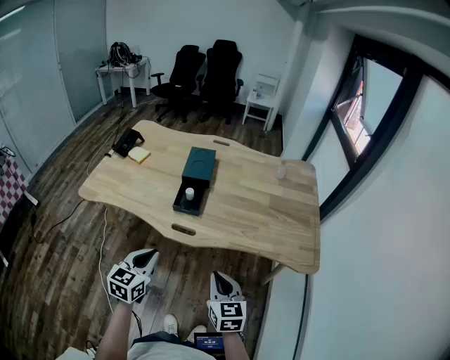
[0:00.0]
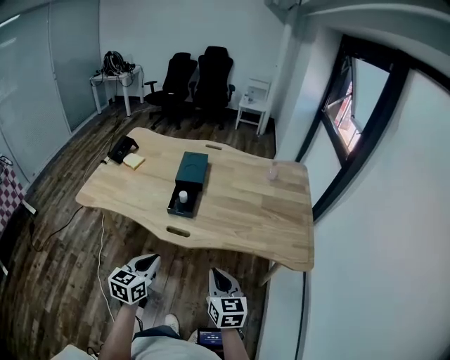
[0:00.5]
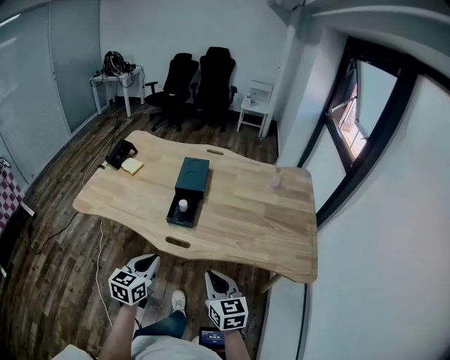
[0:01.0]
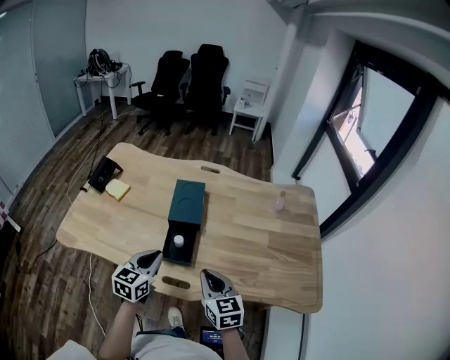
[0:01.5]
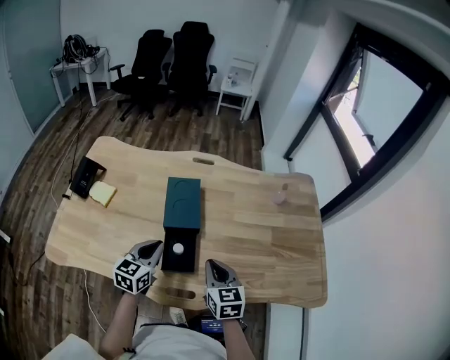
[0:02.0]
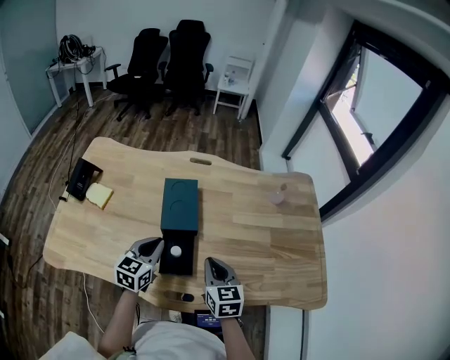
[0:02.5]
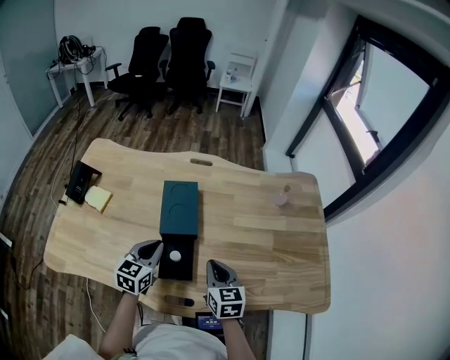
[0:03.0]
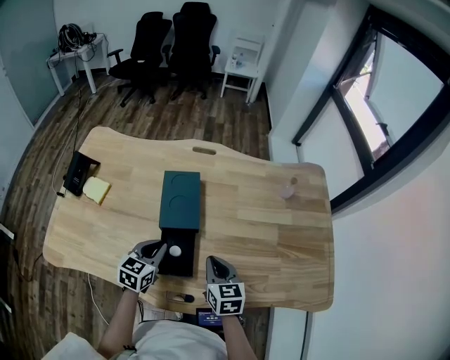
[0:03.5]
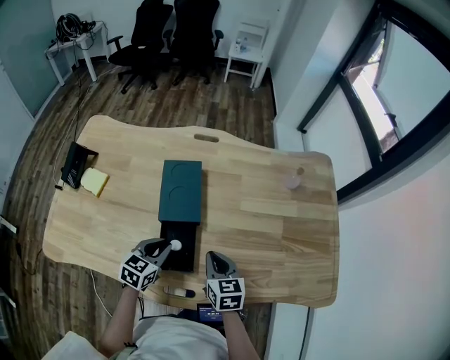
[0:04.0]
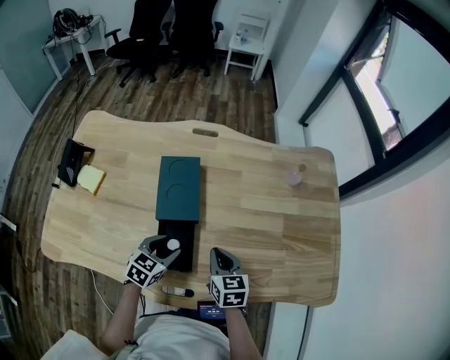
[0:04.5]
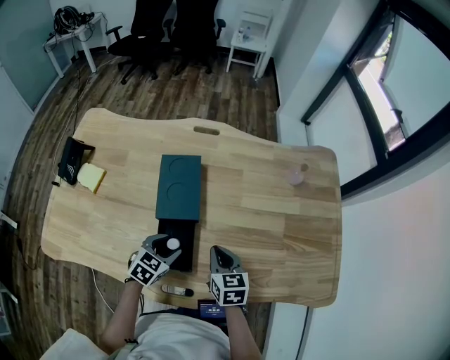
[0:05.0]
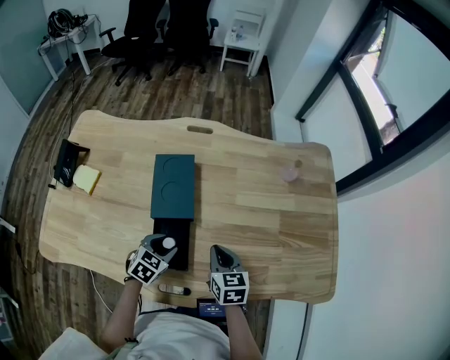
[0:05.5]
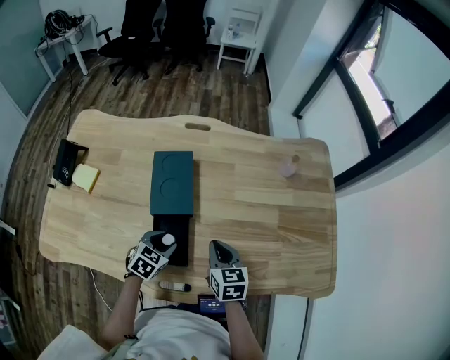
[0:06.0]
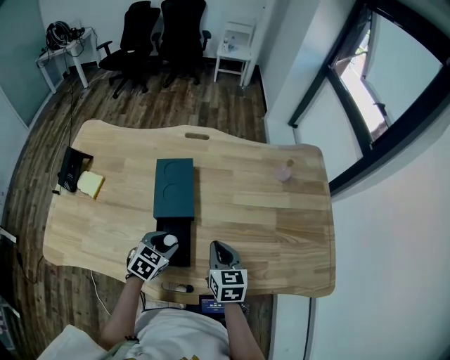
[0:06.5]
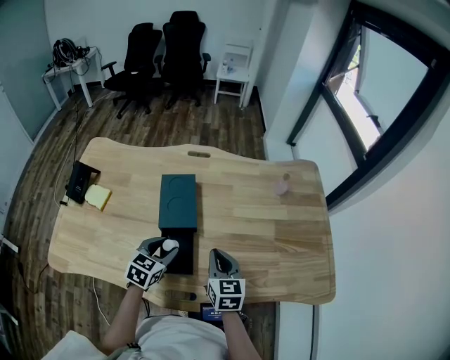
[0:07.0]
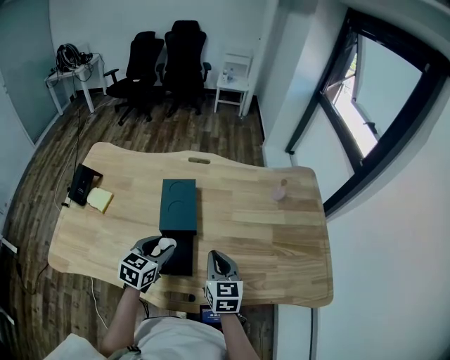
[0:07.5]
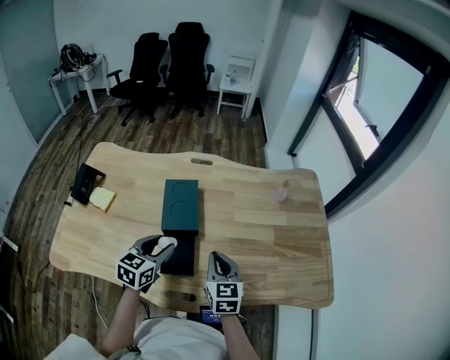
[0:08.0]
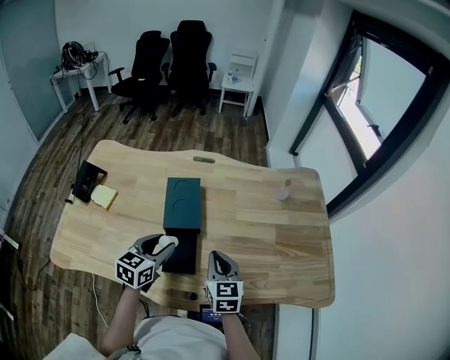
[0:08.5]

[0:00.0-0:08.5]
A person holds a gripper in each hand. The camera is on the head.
0:00.0 to 0:02.0: Both grippers travel together forward, some 35 cm.
0:02.0 to 0:04.0: Both grippers travel together downward, approximately 10 cm.
0:04.0 to 0:06.5: The left gripper opens.
0:06.5 to 0:08.5: The right gripper travels upward by roughly 5 cm. Meanwhile the left gripper goes roughly 10 cm upward, and swivels roughly 30 degrees.

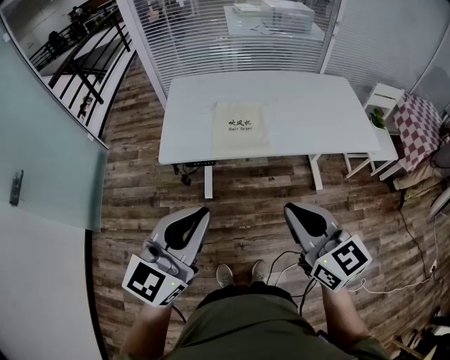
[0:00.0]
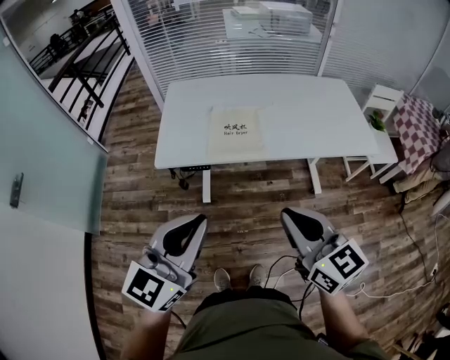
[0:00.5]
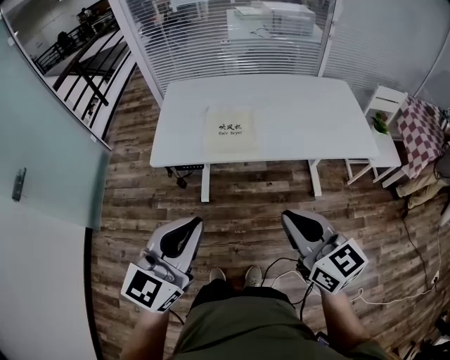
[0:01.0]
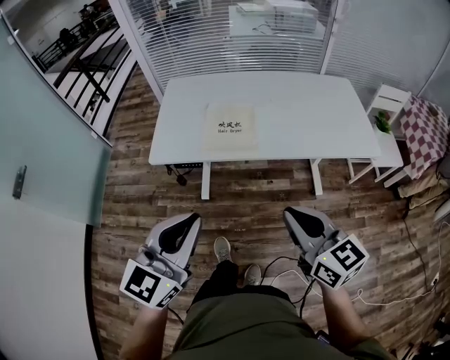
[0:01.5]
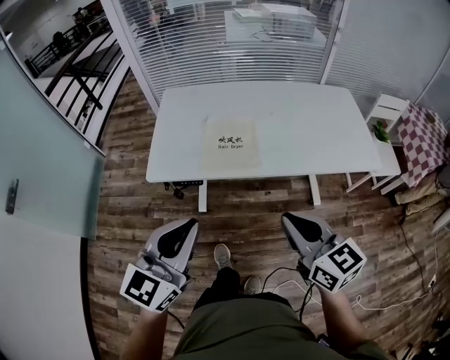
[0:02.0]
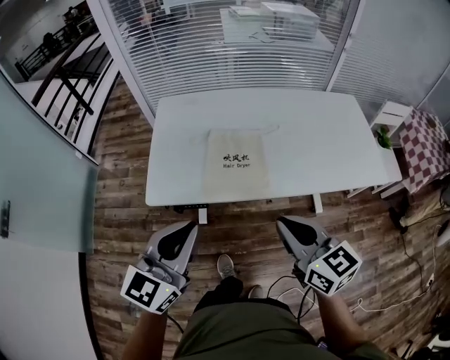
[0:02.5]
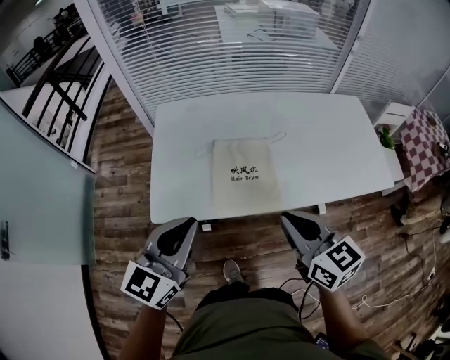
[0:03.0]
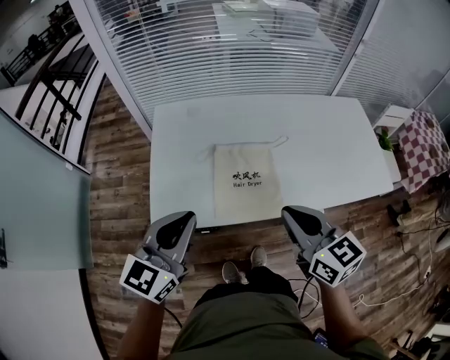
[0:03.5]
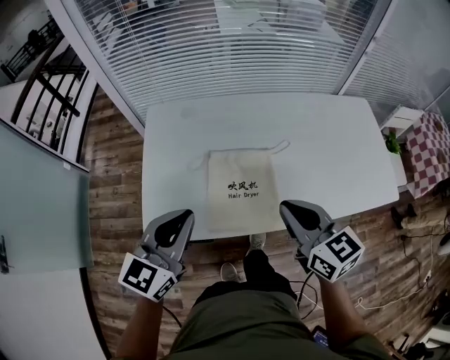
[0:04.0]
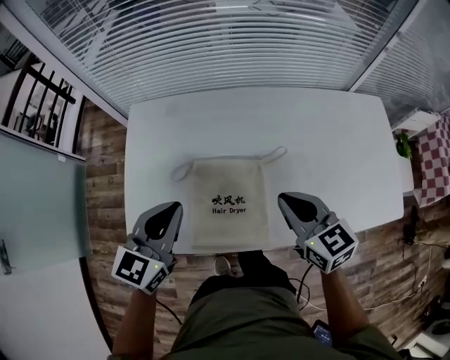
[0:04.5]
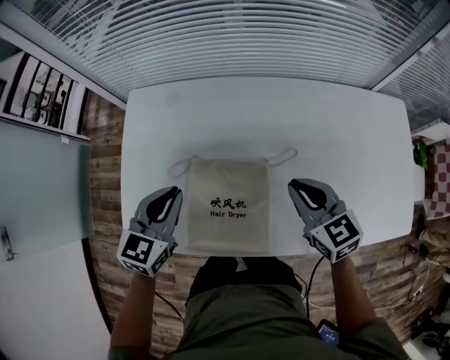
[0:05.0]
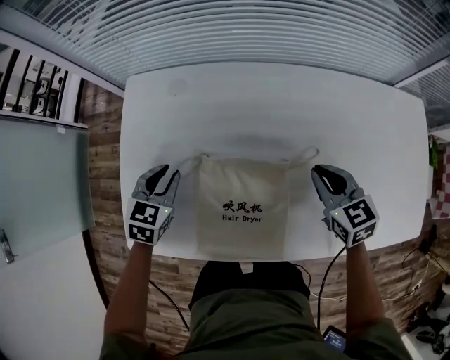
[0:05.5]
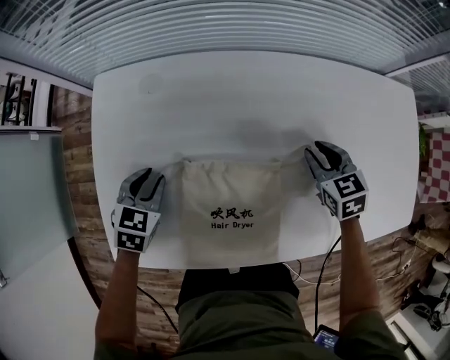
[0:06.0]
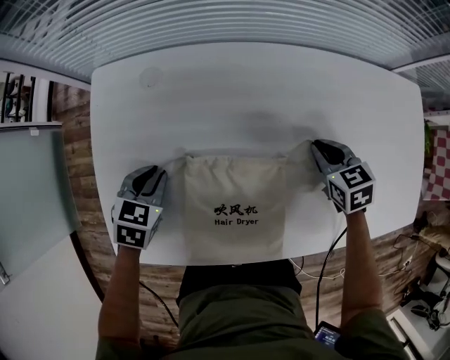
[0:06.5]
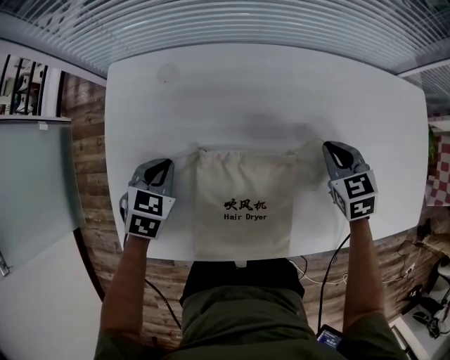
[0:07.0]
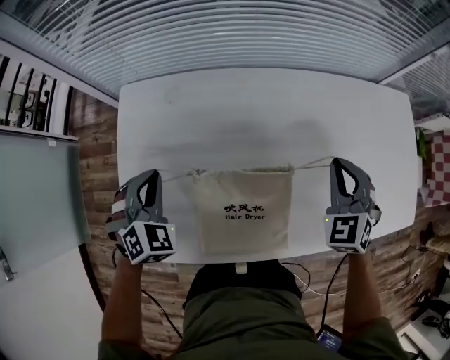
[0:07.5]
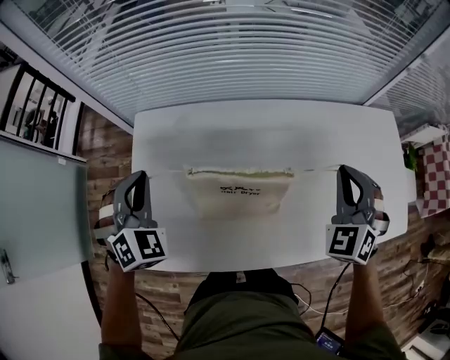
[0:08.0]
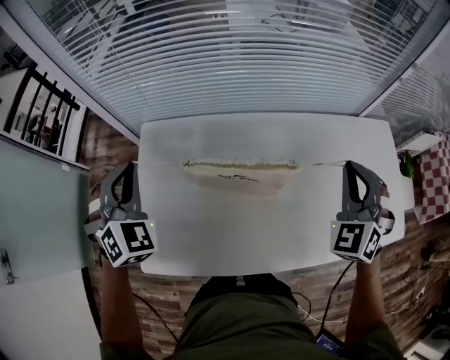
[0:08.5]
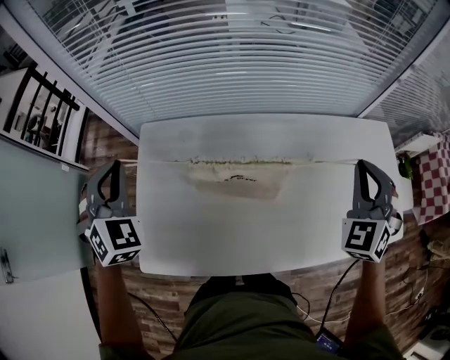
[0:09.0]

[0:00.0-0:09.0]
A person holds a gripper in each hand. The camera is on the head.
0:00.0 to 0:02.0: The left gripper goes about 5 cm forward. Meanwhile the right gripper shifts roughly 10 cm forward and to the right.
0:02.0 to 0:04.5: Both grippers travel together forward, some 40 cm.
0:04.5 to 0:07.0: The right gripper goes roughly 25 cm downward, forward and to the right, turns by about 30 degrees, and opens, then closes again; the left gripper moves downward and forward, roughly 25 cm, and points its fingers about 40 degrees further downward.
0:07.0 to 0:09.0: The grippers both shift upward by some 30 cm. The left gripper angles its fingers upward, by approximately 30 degrees; the right gripper turns by approximately 50 degrees.

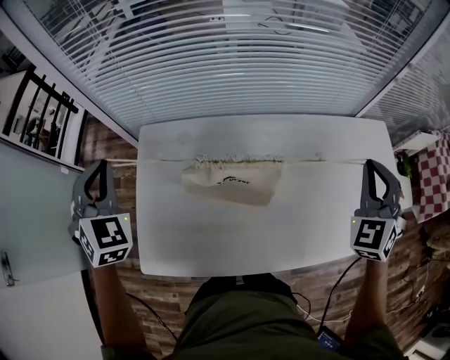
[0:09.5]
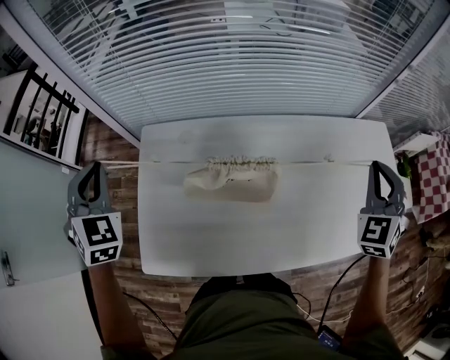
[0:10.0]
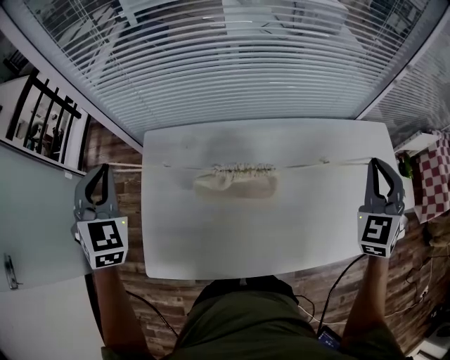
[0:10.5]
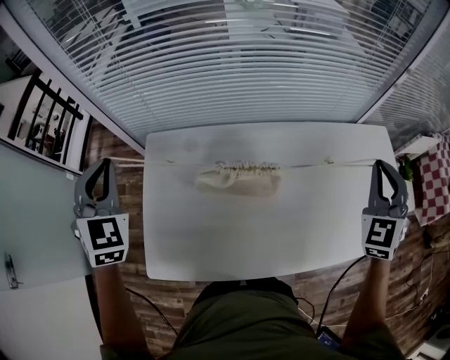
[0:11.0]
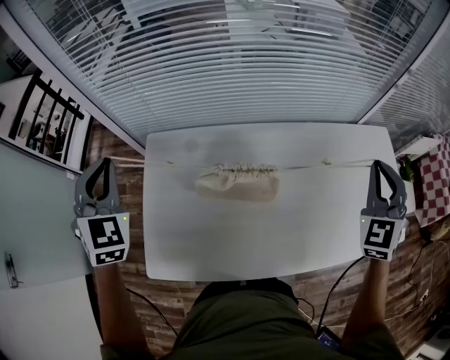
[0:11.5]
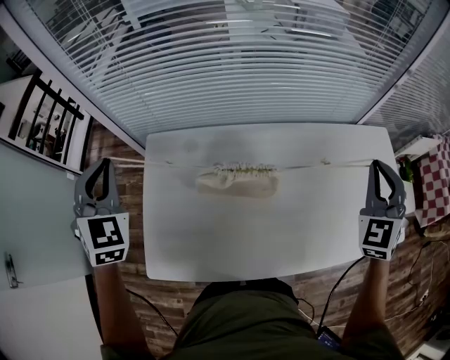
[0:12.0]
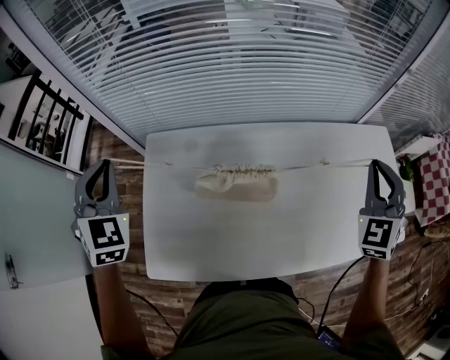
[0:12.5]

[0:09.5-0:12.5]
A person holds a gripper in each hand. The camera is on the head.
0:09.5 to 0:11.0: The grippers make only small movements.
0:11.0 to 0:12.5: Both grippers stay about where they are.

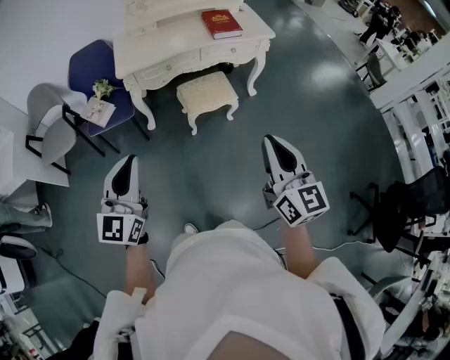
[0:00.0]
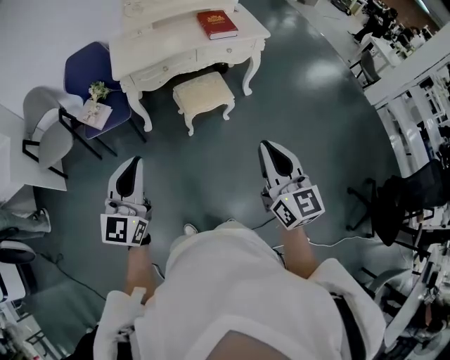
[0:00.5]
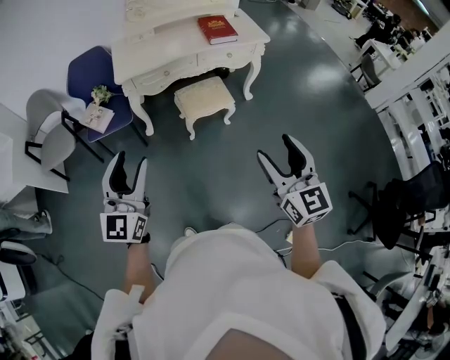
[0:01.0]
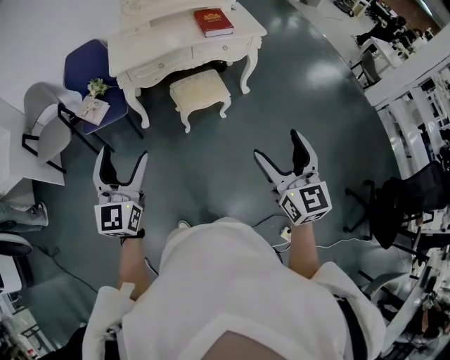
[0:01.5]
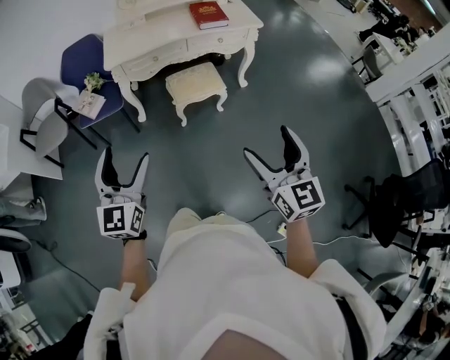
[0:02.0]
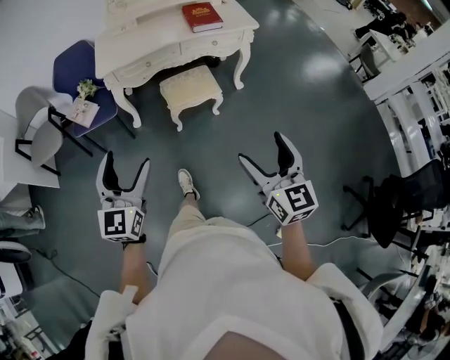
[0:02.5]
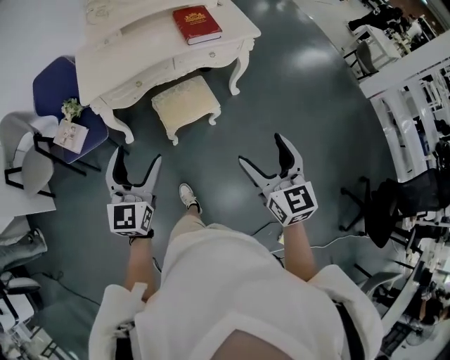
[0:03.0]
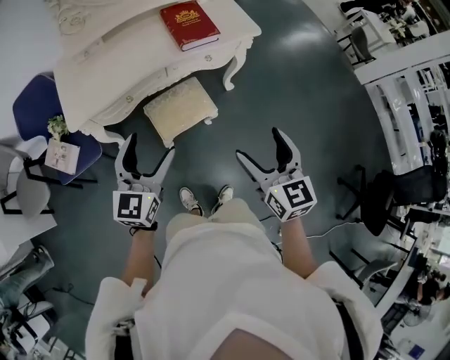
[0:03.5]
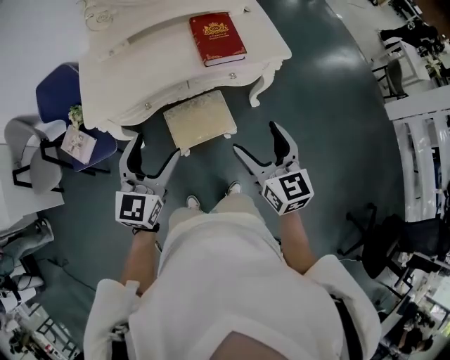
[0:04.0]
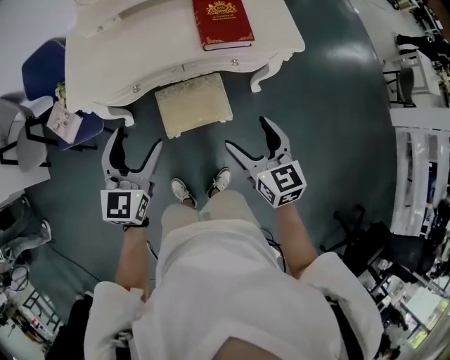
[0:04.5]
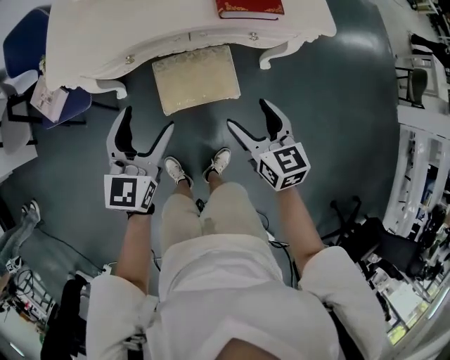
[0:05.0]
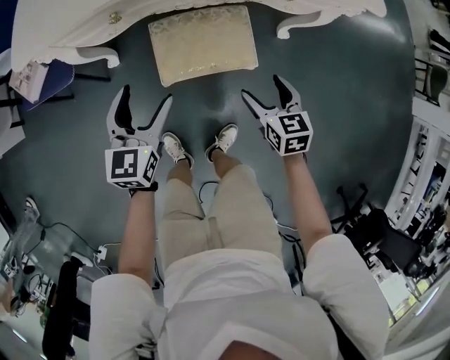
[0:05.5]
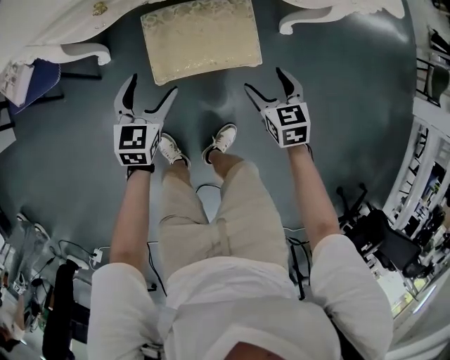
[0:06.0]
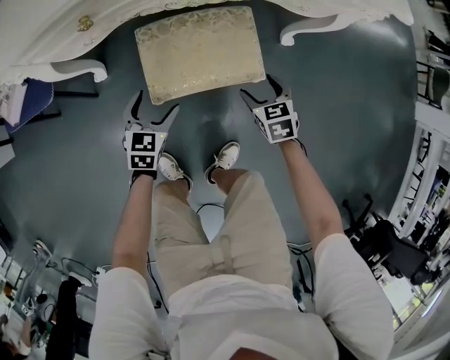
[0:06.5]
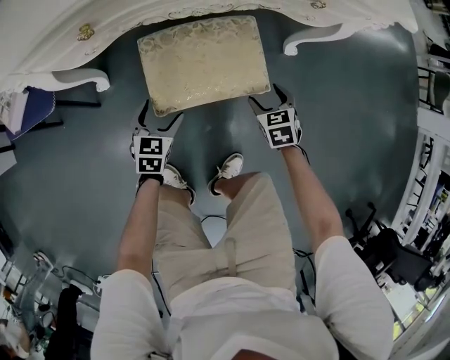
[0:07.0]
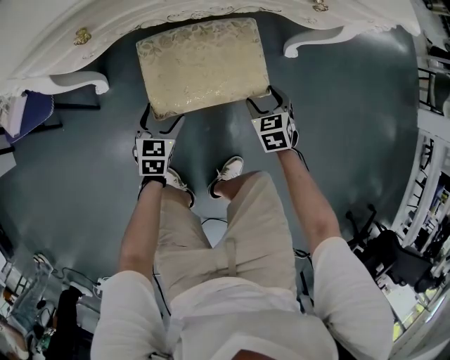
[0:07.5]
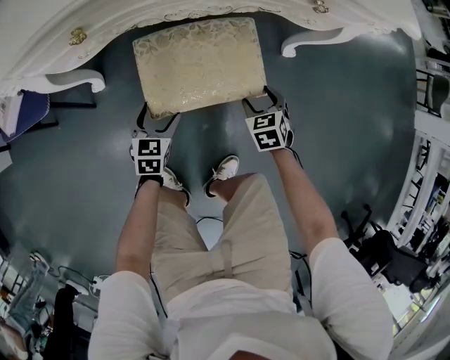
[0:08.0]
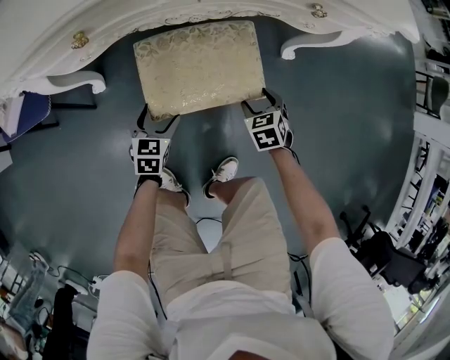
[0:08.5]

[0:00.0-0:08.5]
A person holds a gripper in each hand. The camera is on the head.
0:00.0 to 0:02.0: The right gripper heads to the right, covering approximately 5 cm, and opens its fingers; the left gripper ends up some 5 cm from where it was, and opens up.
0:02.0 to 0:04.0: The two grippers travel together, forward, roughly 50 cm.
0:04.0 to 0:06.5: The grippers both shift downward by approximately 60 cm. The right gripper points its fingers approximately 40 degrees further downward. The left gripper tilts its fingers about 30 degrees downward.
0:06.5 to 0:08.5: The right gripper ends up about 5 cm from where it was. Meanwhile the left gripper is displaced downward by roughly 5 cm.
